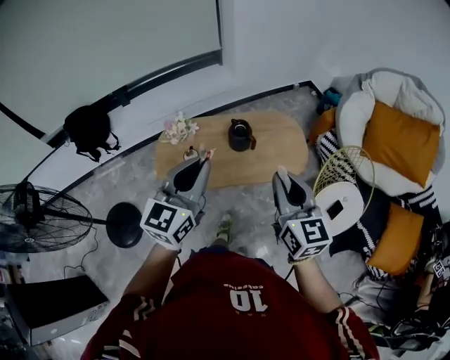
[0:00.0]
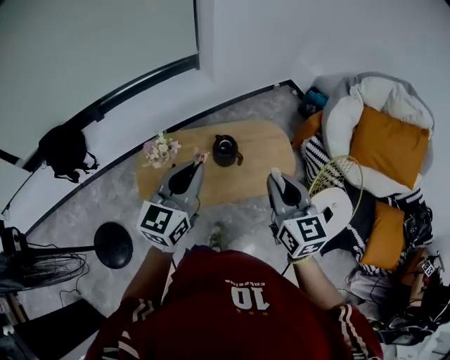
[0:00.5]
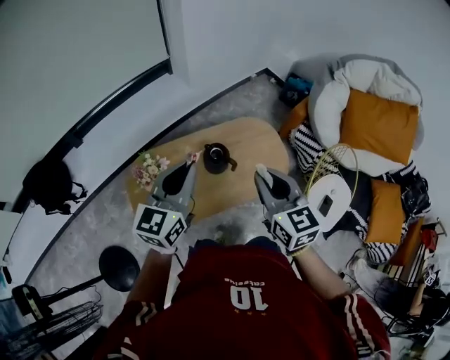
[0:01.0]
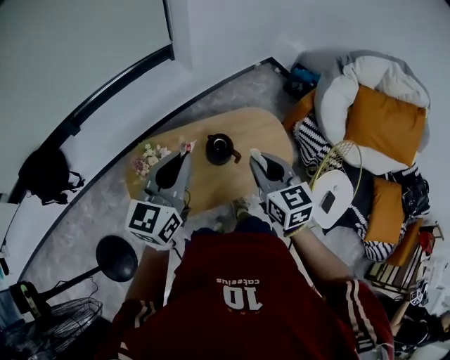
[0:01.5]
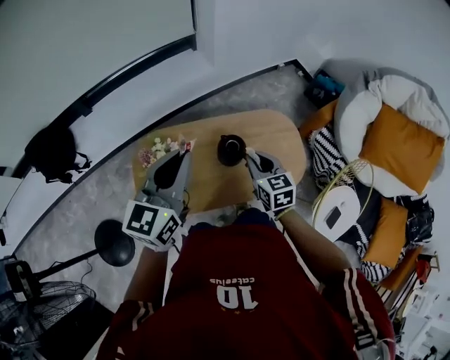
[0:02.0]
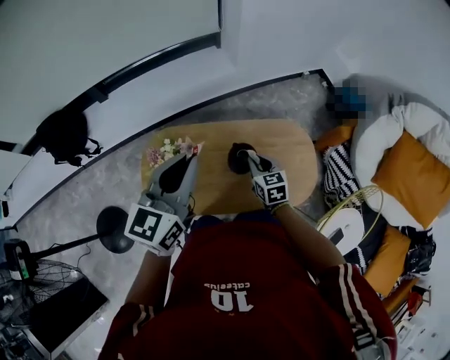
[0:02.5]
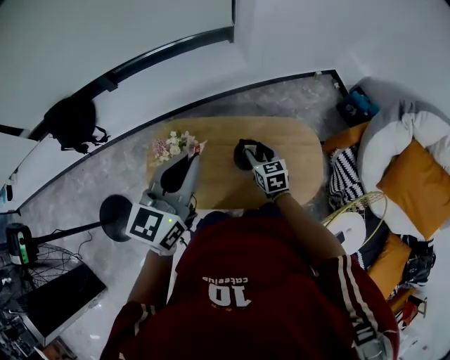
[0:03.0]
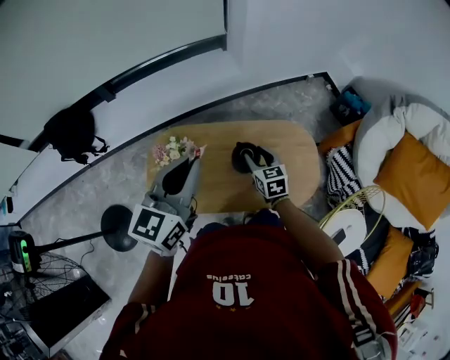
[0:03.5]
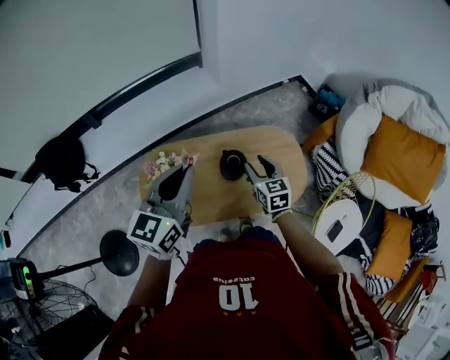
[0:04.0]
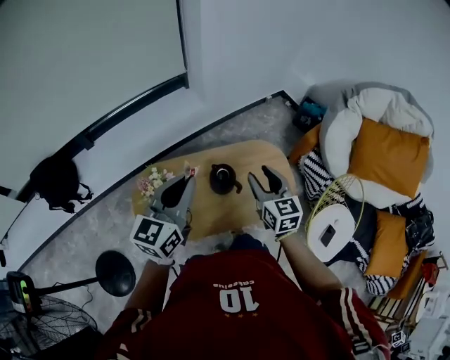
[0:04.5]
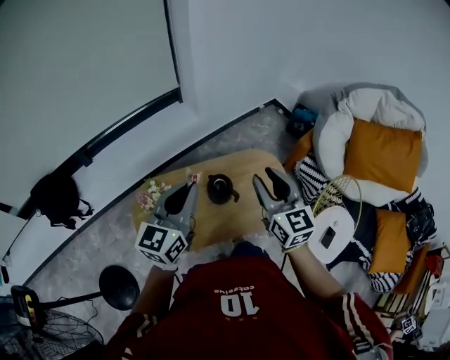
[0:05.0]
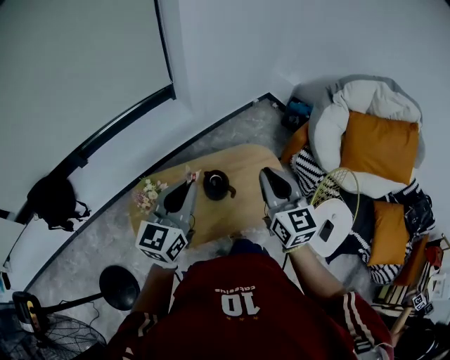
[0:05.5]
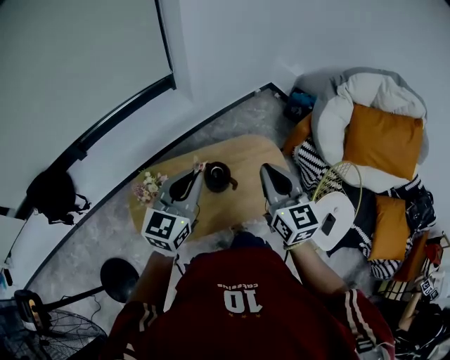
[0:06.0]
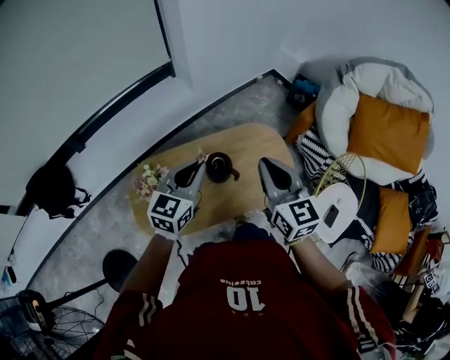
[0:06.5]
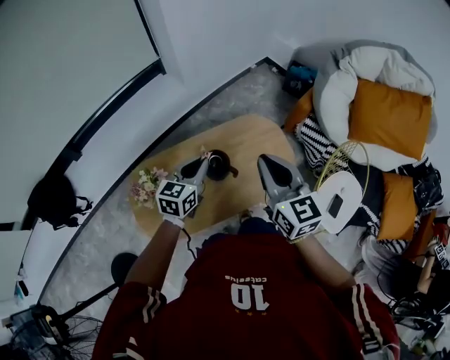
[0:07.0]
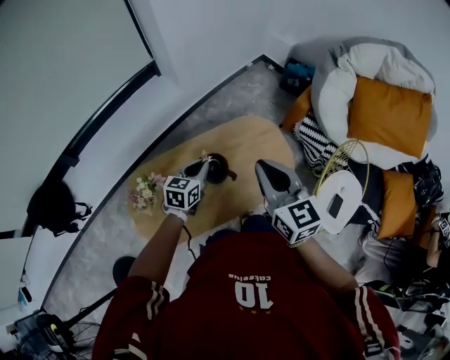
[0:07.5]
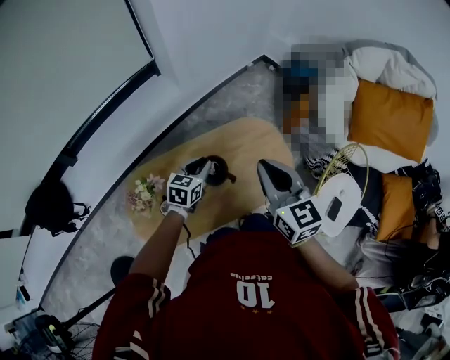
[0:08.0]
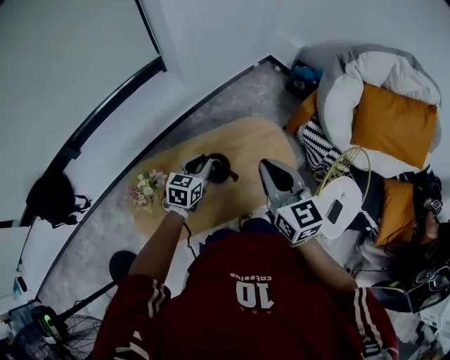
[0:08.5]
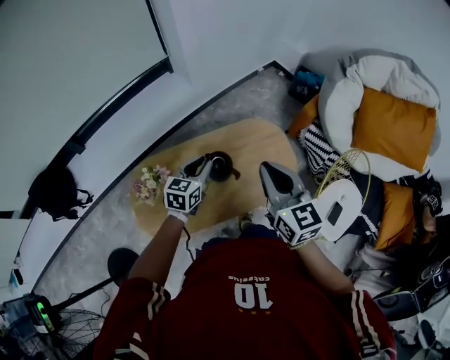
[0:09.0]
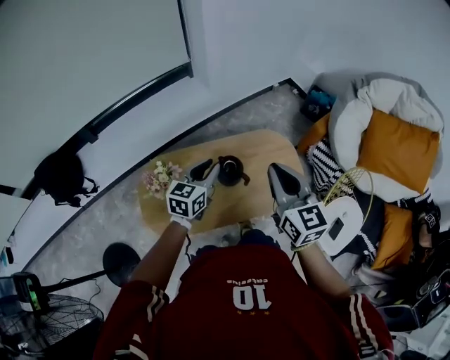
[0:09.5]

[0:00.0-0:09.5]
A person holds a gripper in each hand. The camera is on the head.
0:00.0 to 0:02.0: The left gripper moves forward, some 25 cm. The right gripper goes roughly 40 cm forward and downward, and rotates roughly 20 degrees.
0:02.0 to 0:04.0: The right gripper reaches about 10 cm downward, then returns, and opens.
0:04.0 to 0:05.5: The left gripper moves about 5 cm. The right gripper travels upward by approximately 20 cm, changes its angle by about 30 degrees, and closes.
0:05.5 to 0:07.5: The left gripper goes approximately 30 cm downward and forward, and swivels roughly 30 degrees. Meanwhile the right gripper is displaced downward by roughly 5 cm.
0:07.5 to 0:09.5: The right gripper moves some 5 cm, while the left gripper is displaced upward and backward by approximately 10 cm.

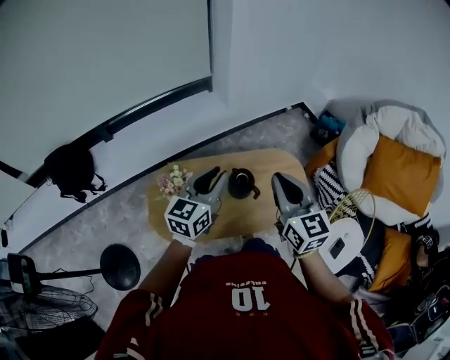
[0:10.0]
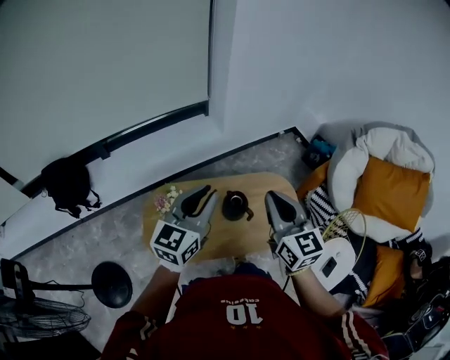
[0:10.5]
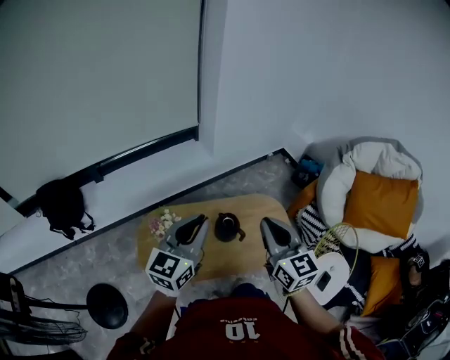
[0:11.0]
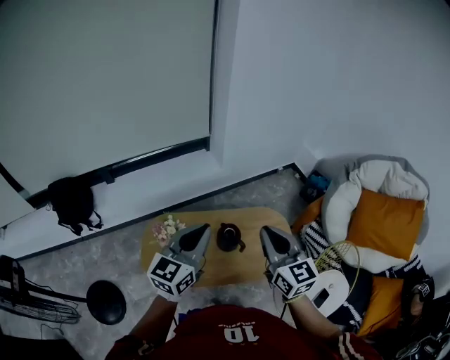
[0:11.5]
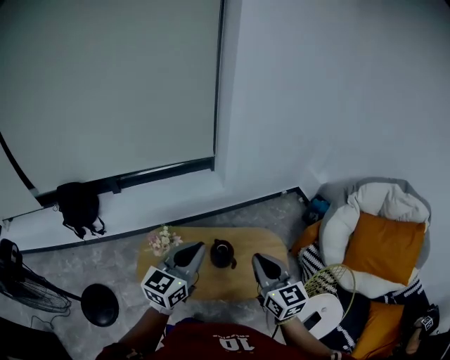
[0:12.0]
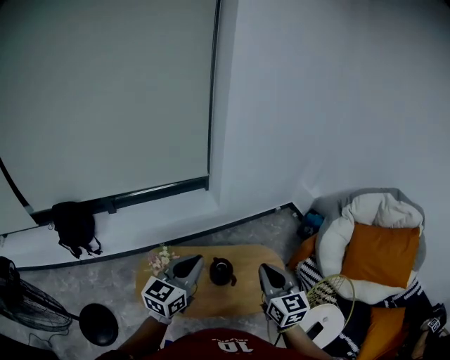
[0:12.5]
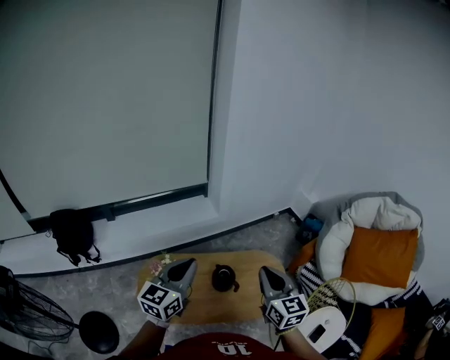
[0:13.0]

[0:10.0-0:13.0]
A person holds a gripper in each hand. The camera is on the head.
0:10.0 to 0:11.5: The right gripper heads upward, covering some 5 cm. The left gripper heads upward and backward, covering some 15 cm.

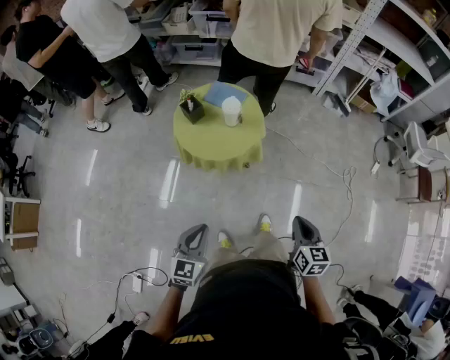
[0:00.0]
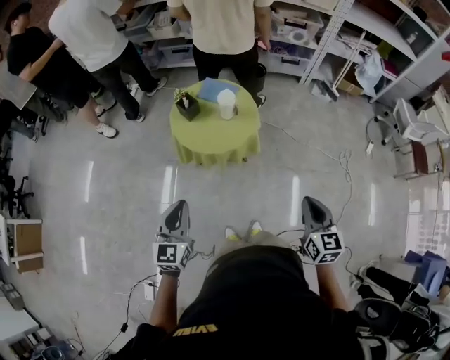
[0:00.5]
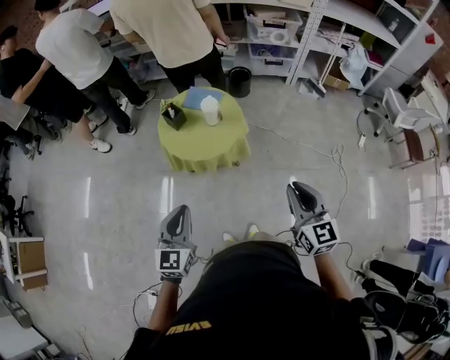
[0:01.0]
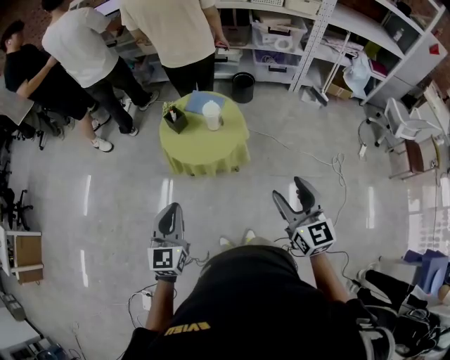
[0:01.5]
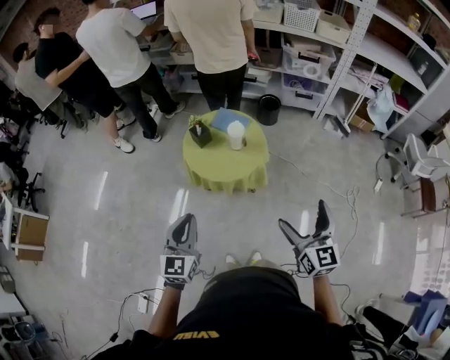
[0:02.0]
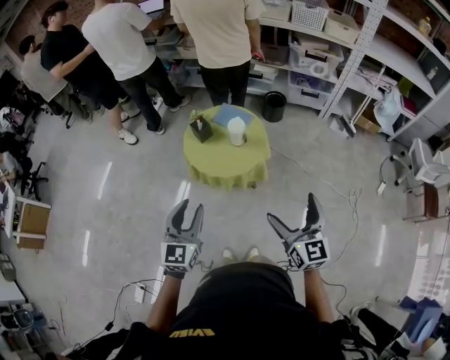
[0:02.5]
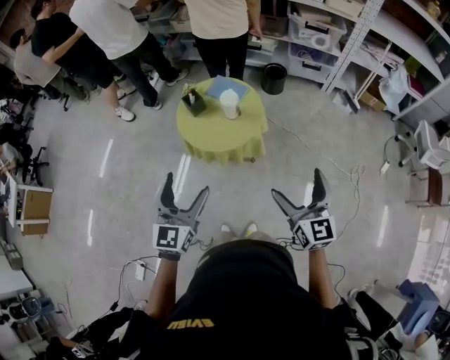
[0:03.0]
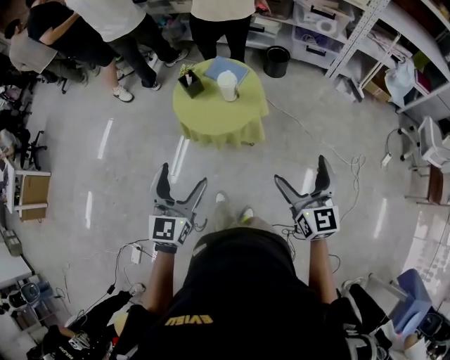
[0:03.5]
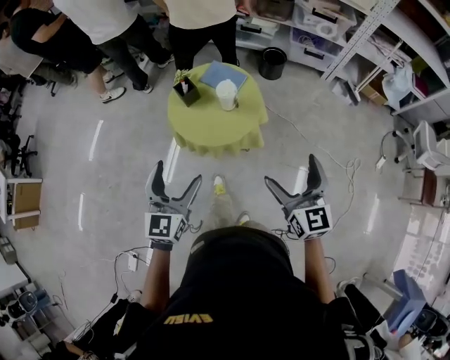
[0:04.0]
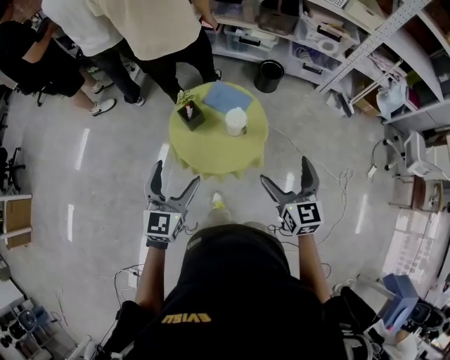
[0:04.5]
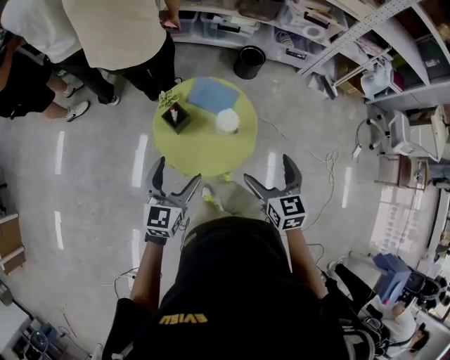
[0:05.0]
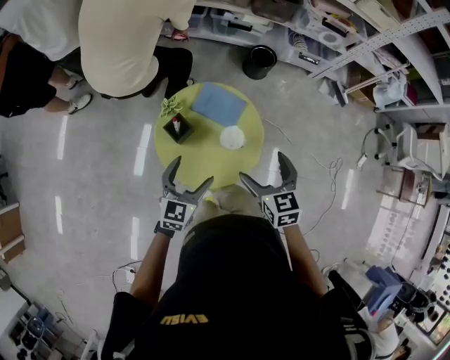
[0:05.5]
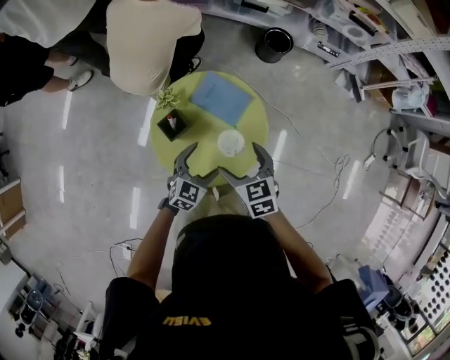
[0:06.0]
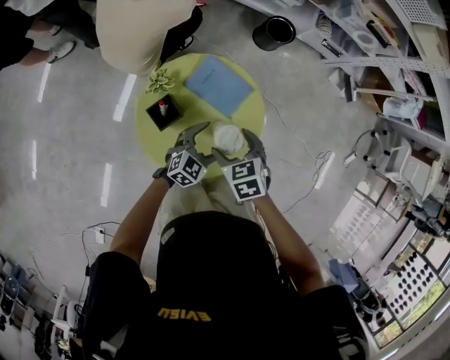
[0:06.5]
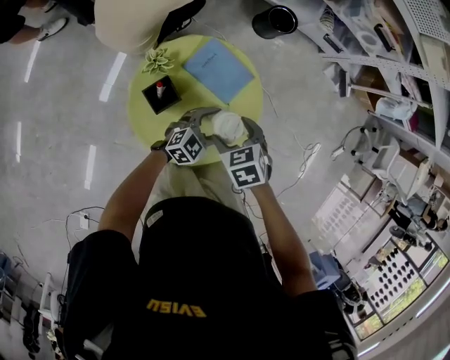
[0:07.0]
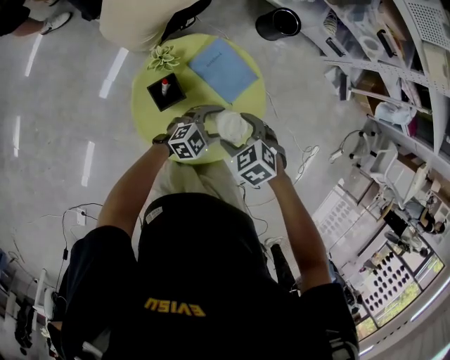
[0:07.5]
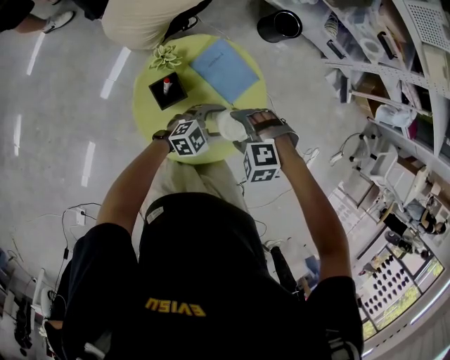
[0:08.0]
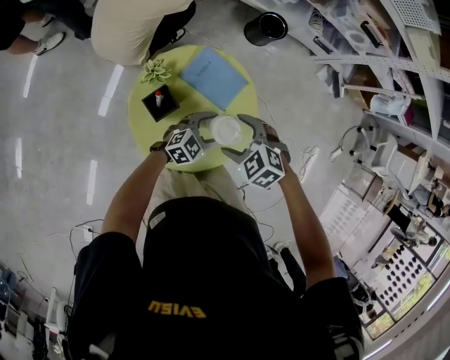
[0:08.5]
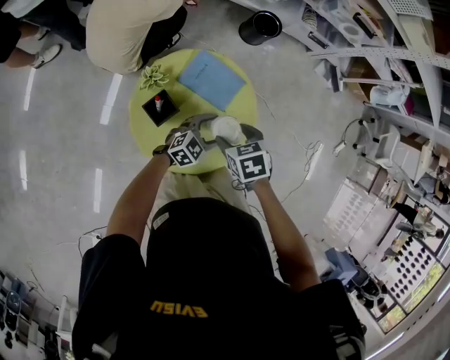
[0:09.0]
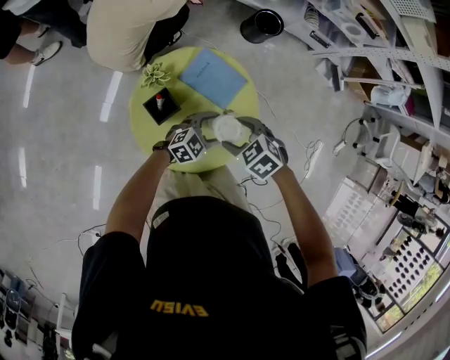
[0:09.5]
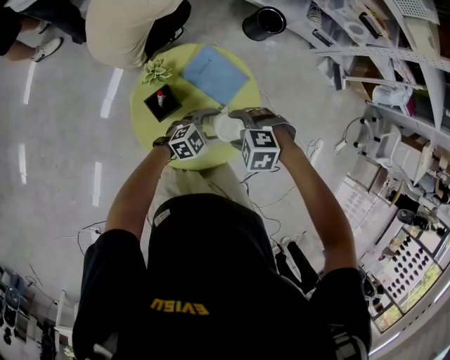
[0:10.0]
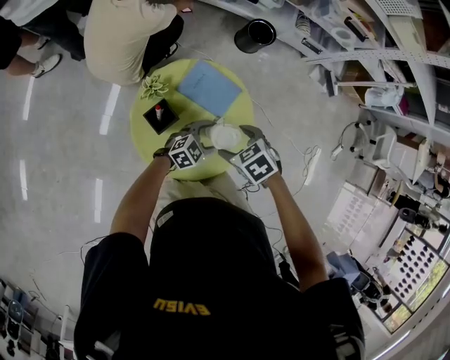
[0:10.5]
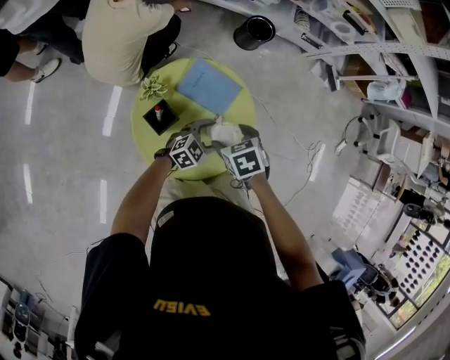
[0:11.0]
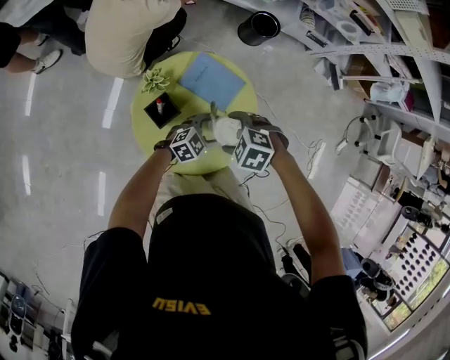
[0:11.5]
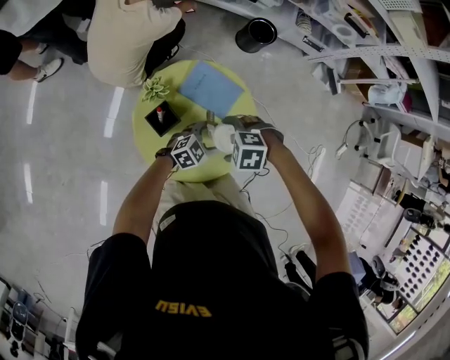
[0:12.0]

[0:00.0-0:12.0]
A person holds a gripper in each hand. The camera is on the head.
0:00.0 to 0:02.0: The left gripper heads upward and forward, covering roughly 15 cm, while the right gripper heads upward, covering about 15 cm, rotates approximately 30 degrees, and opens its fingers.
0:02.0 to 0:04.0: The right gripper goes some 15 cm forward. The left gripper travels forward and to the right by some 10 cm, and opens its fingers.
0:04.0 to 0:06.0: The right gripper heads forward, to the left and downward, covering approximately 40 cm, and points its fingers some 30 degrees further downward; the left gripper moves forward and downward, some 40 cm, and rotates about 40 degrees.
0:06.0 to 0:08.0: Both grippers travel together downward, about 10 cm. The left gripper swivels some 30 degrees. The right gripper rolls counterclockwise, seen from behind, by some 80 degrees.

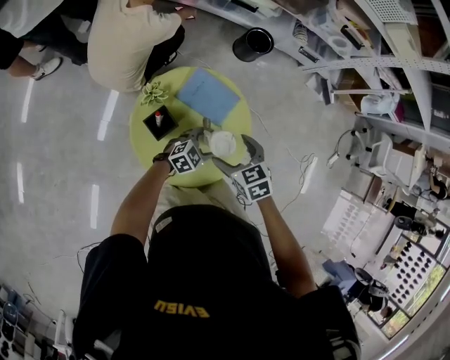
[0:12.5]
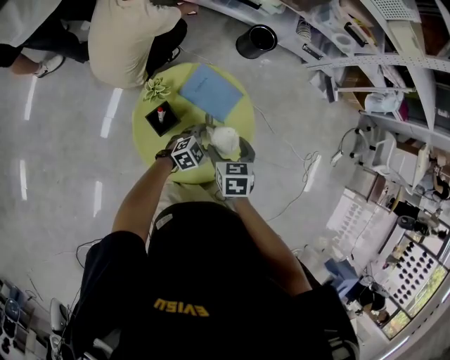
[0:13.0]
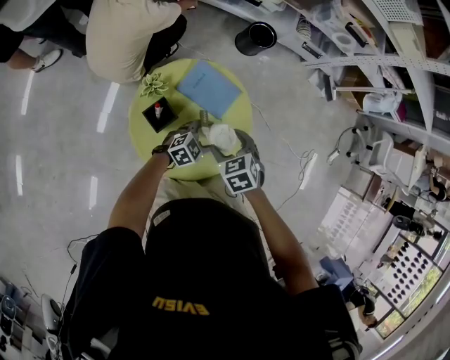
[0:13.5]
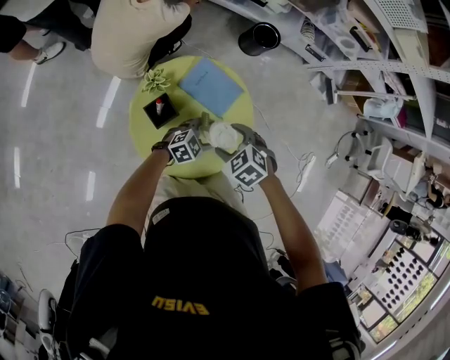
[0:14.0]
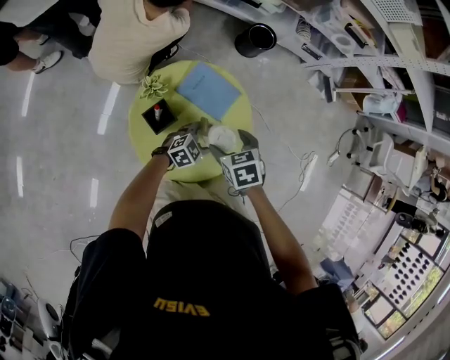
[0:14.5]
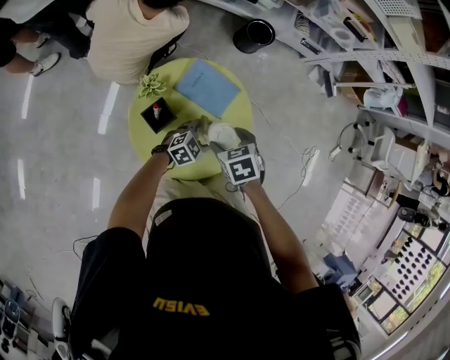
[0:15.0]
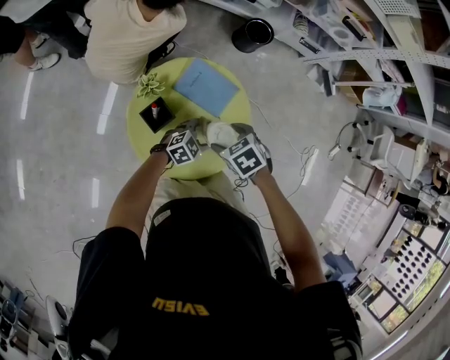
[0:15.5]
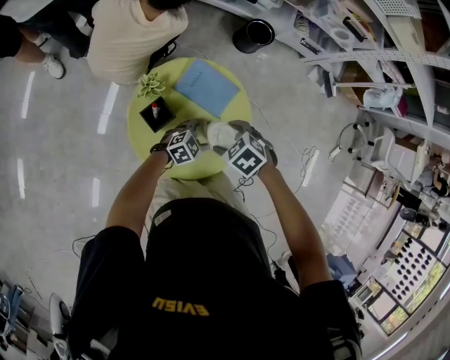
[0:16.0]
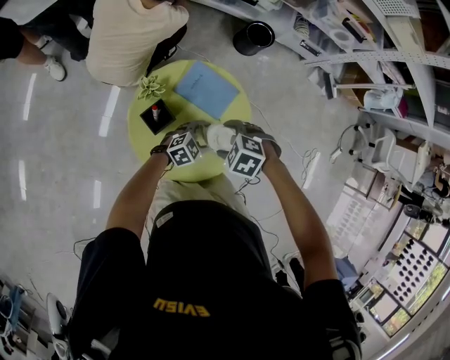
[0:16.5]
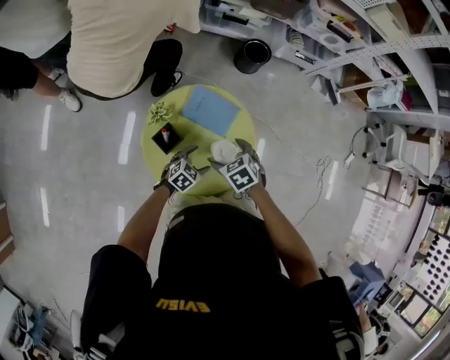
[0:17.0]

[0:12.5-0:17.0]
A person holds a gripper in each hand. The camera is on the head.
0:14.5 to 0:17.0: The left gripper ends up roughly 5 cm from where it was.
